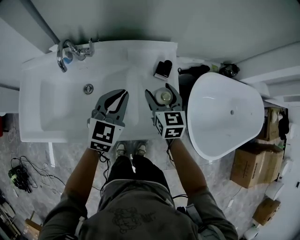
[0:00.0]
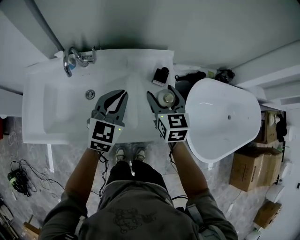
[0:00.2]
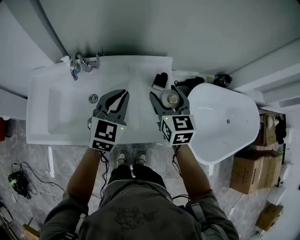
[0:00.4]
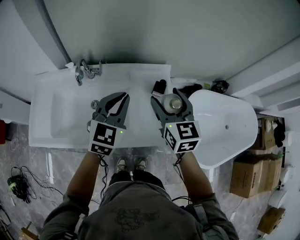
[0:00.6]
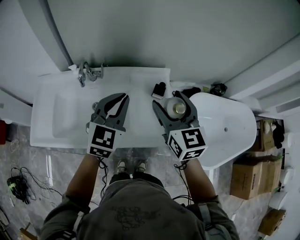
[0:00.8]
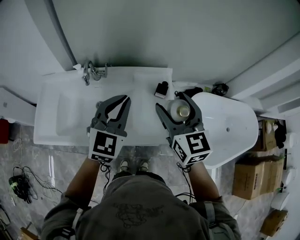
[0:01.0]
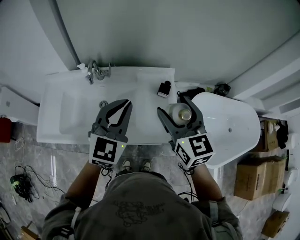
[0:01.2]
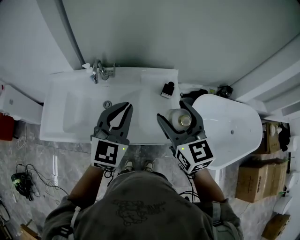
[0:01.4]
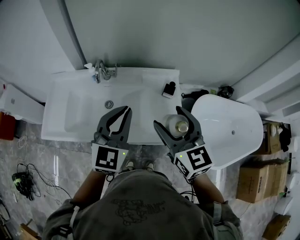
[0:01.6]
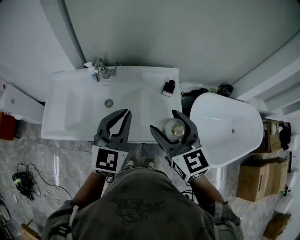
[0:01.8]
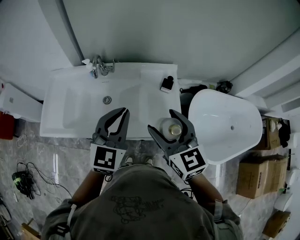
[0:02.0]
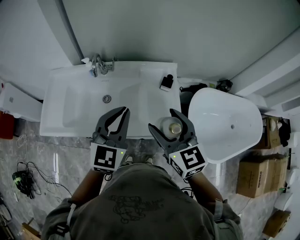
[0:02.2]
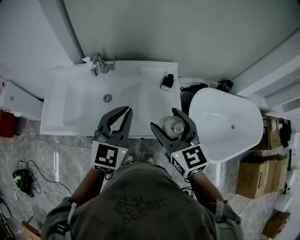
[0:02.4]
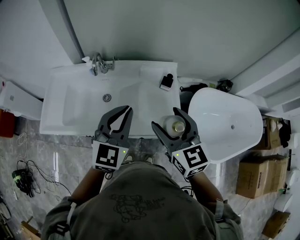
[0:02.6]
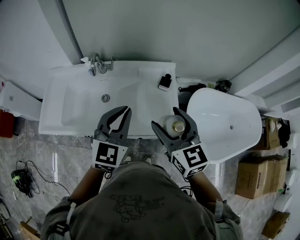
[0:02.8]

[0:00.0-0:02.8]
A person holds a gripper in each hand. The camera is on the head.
0:00.0 to 0:01.4: The two grippers go some 25 cm upward and backward.
0:01.4 to 0:02.8: The right gripper shifts some 5 cm backward; the left gripper changes place by about 5 cm.

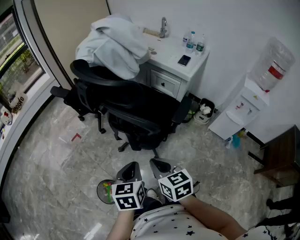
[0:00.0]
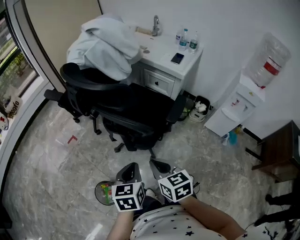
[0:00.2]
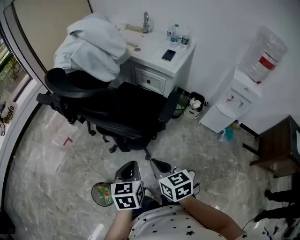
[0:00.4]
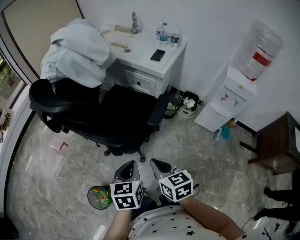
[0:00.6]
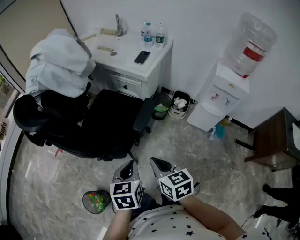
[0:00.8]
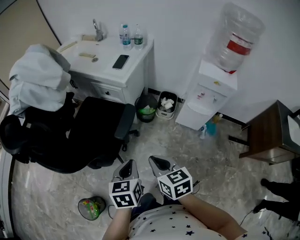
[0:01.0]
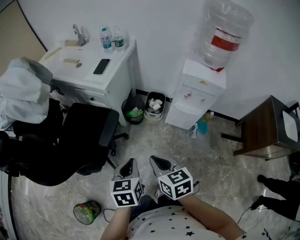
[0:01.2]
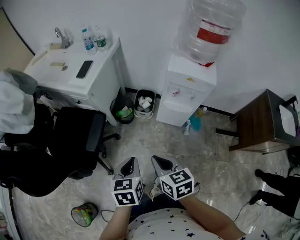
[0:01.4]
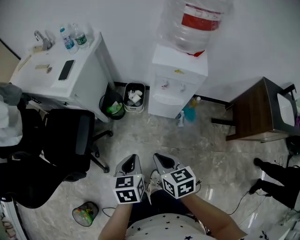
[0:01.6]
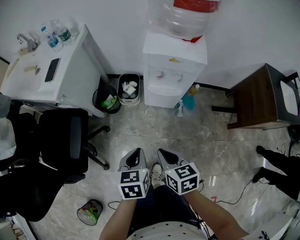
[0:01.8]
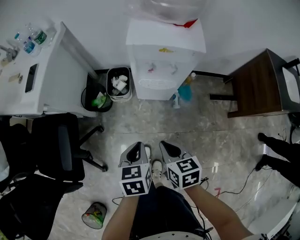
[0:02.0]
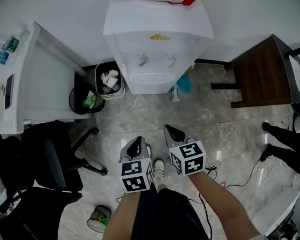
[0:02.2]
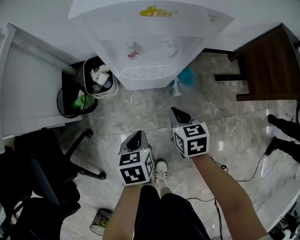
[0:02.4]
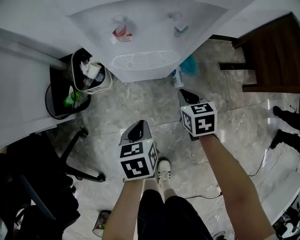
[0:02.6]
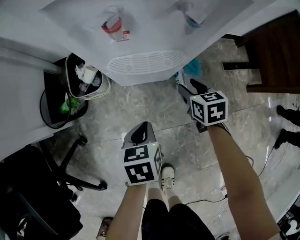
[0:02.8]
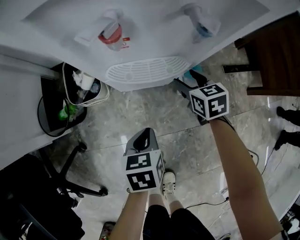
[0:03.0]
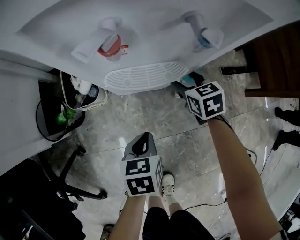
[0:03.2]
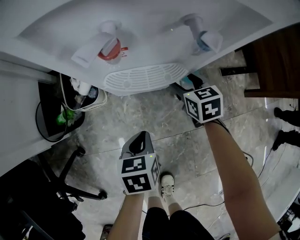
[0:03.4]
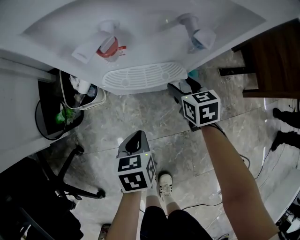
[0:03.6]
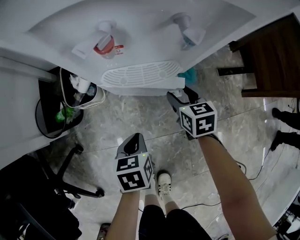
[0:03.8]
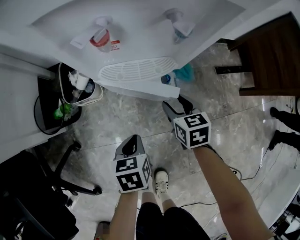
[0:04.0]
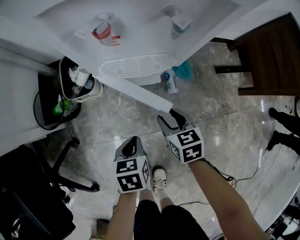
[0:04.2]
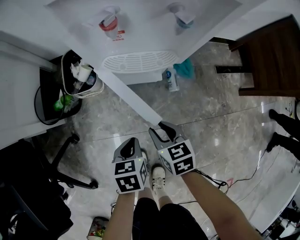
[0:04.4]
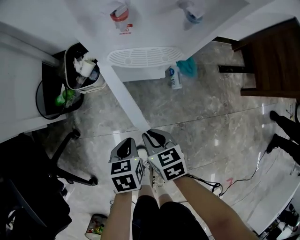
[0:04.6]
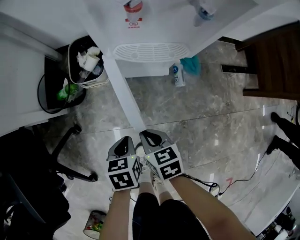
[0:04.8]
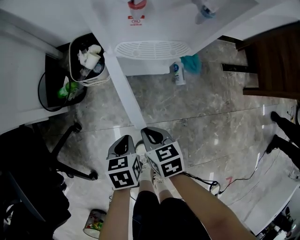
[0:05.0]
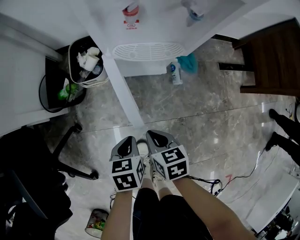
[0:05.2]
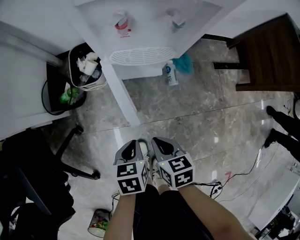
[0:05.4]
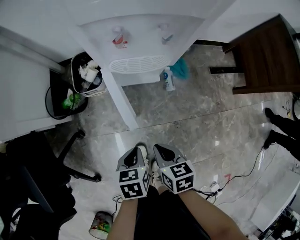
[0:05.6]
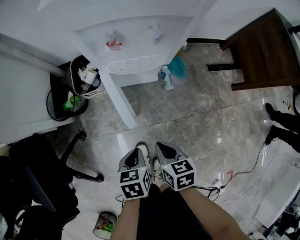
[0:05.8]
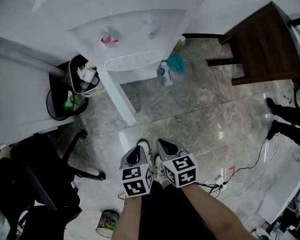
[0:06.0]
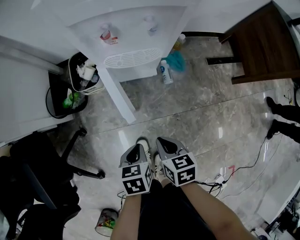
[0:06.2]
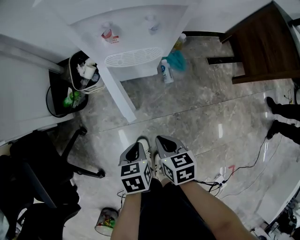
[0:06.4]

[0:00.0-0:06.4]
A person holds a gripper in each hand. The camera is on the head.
0:00.0 to 0:01.6: The pair of grippers is taken approximately 50 cm. The right gripper turns by roughly 30 degrees; the left gripper swivels some 30 degrees.
0:01.6 to 0:03.2: The two grippers go about 40 cm downward. The right gripper changes its angle by some 20 degrees, and opens up. The left gripper swivels roughly 30 degrees.
0:03.2 to 0:04.8: The left gripper shifts some 15 cm backward and to the left. The right gripper is displaced backward and to the left by approximately 30 cm, and closes.
0:04.8 to 0:06.4: The left gripper moves upward, backward and to the right, about 10 cm. The right gripper goes roughly 15 cm upward, to the right and backward.

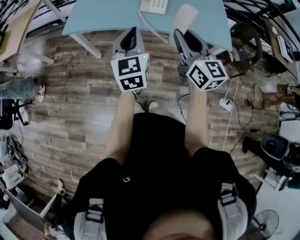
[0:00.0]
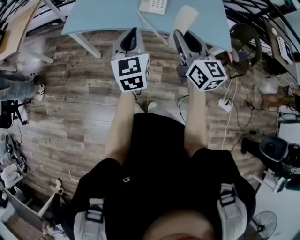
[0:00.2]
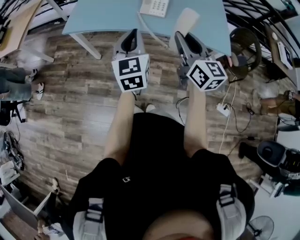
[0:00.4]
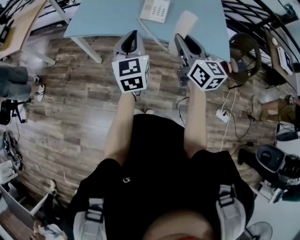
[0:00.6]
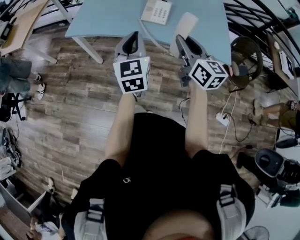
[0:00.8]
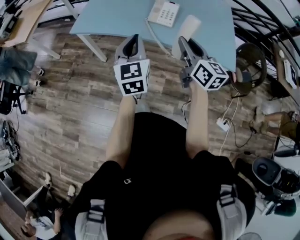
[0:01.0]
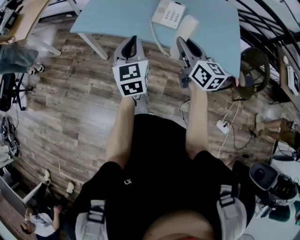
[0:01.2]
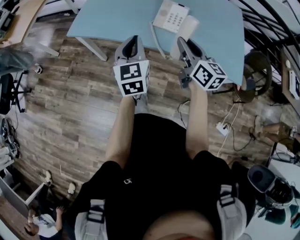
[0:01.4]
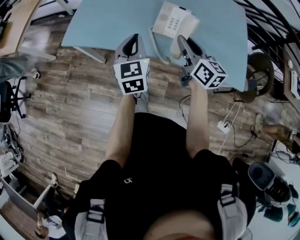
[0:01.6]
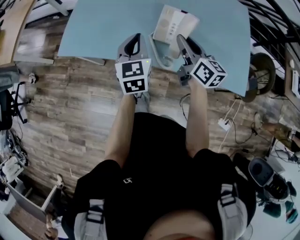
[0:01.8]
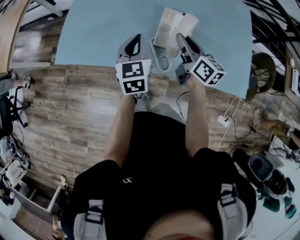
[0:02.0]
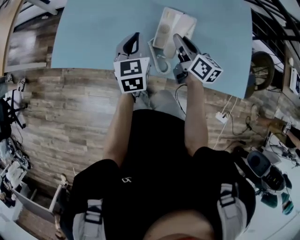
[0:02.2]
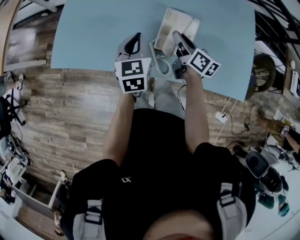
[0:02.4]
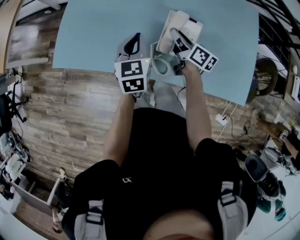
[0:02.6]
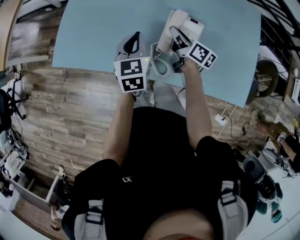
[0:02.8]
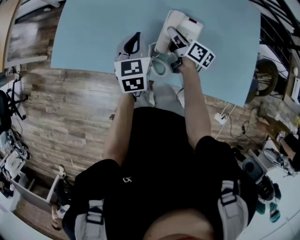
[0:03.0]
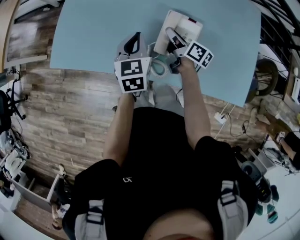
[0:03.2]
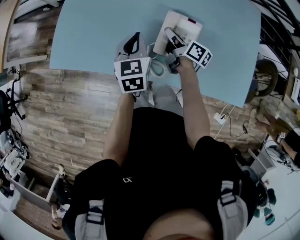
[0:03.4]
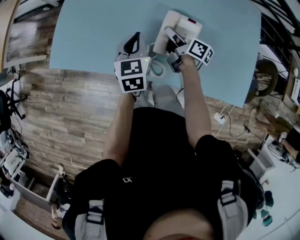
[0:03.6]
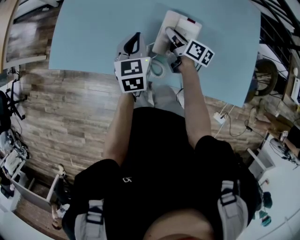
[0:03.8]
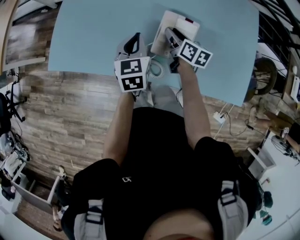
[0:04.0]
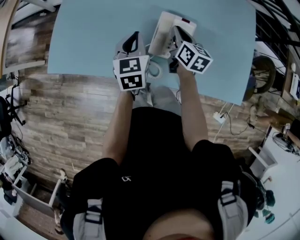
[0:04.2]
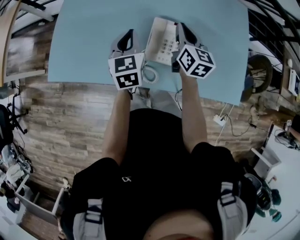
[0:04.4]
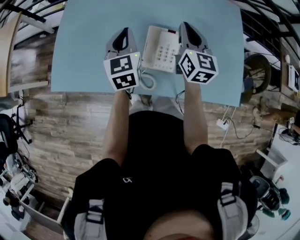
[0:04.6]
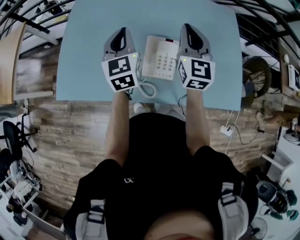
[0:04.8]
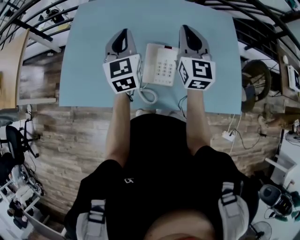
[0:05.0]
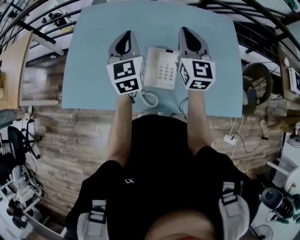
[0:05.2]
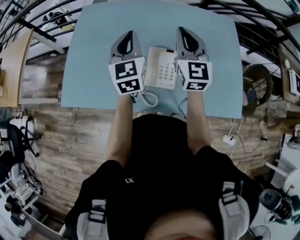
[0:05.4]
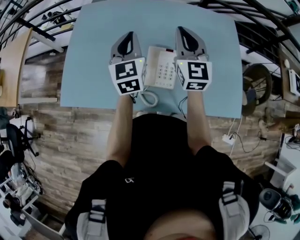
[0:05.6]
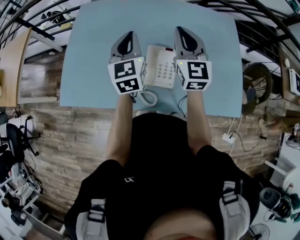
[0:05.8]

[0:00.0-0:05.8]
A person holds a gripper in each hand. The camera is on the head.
0:00.0 to 0:01.4: The grippers both shift forward and downward by some 15 cm.
0:01.4 to 0:02.8: The right gripper heads forward and downward, covering about 35 cm, and swivels roughly 30 degrees, while the left gripper goes about 30 cm forward.
0:02.8 to 0:04.4: The right gripper shifts approximately 10 cm upward and to the right, and rotates roughly 40 degrees. The left gripper moves about 5 cm.
0:04.4 to 0:05.8: The left gripper shifts approximately 15 cm upward and forward. Meanwhile the right gripper goes about 15 cm upward, and swivels about 30 degrees.

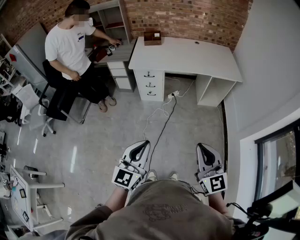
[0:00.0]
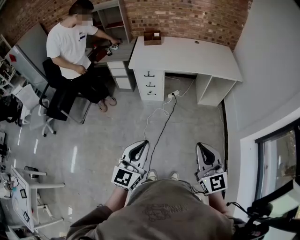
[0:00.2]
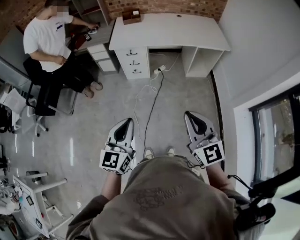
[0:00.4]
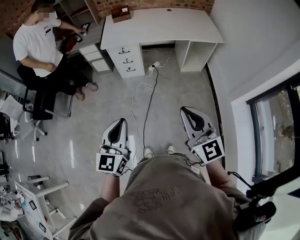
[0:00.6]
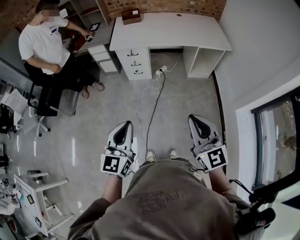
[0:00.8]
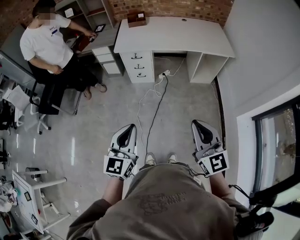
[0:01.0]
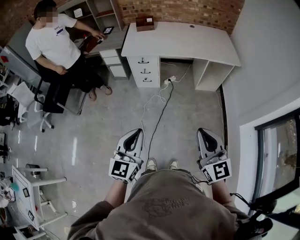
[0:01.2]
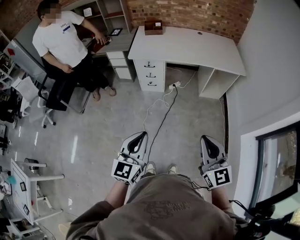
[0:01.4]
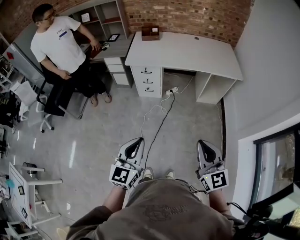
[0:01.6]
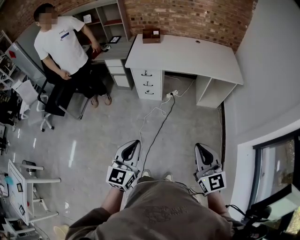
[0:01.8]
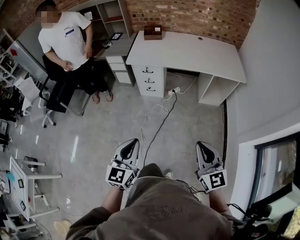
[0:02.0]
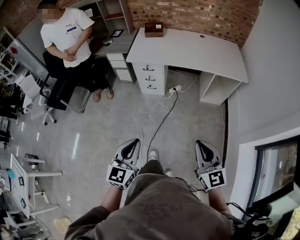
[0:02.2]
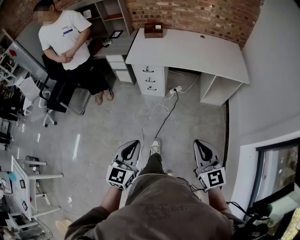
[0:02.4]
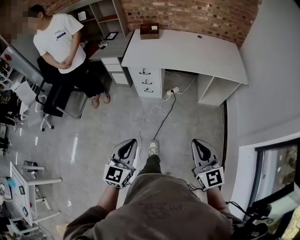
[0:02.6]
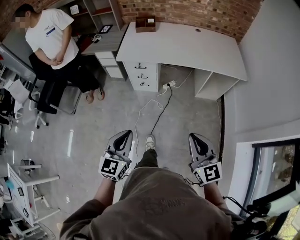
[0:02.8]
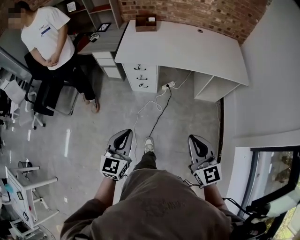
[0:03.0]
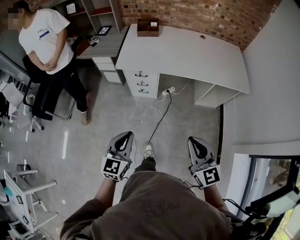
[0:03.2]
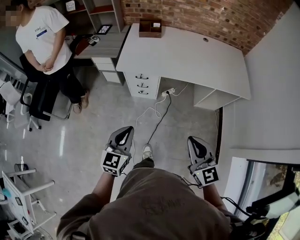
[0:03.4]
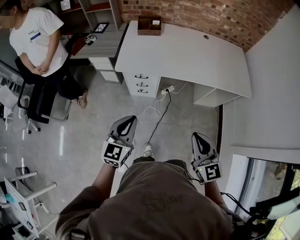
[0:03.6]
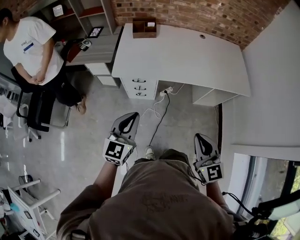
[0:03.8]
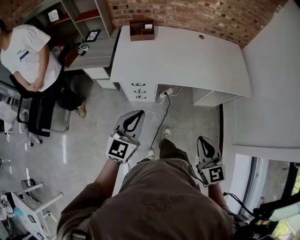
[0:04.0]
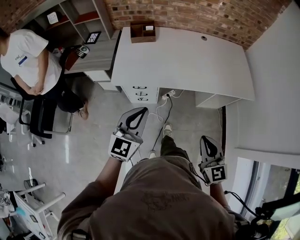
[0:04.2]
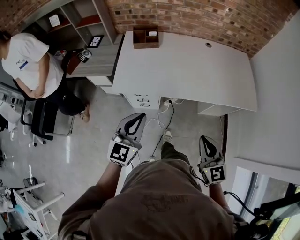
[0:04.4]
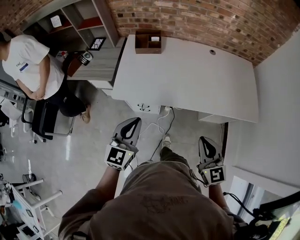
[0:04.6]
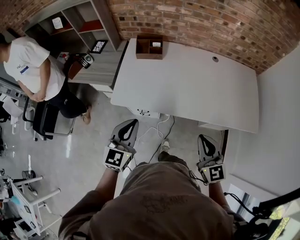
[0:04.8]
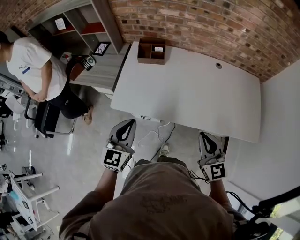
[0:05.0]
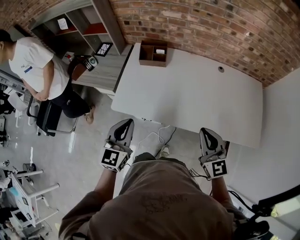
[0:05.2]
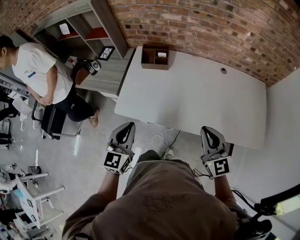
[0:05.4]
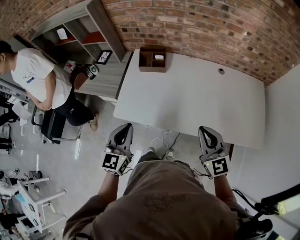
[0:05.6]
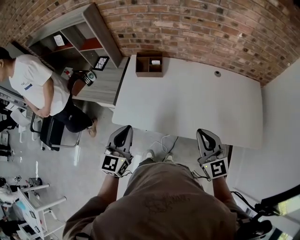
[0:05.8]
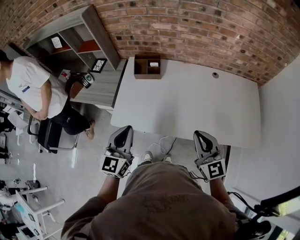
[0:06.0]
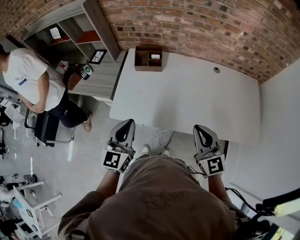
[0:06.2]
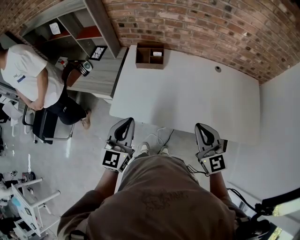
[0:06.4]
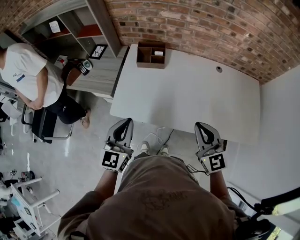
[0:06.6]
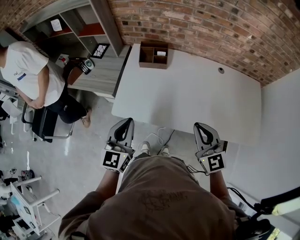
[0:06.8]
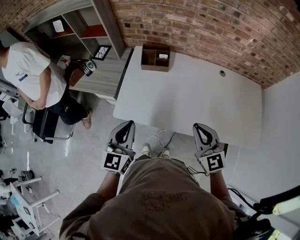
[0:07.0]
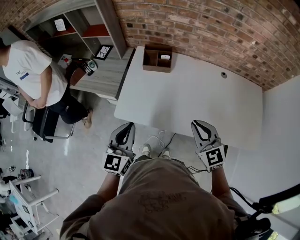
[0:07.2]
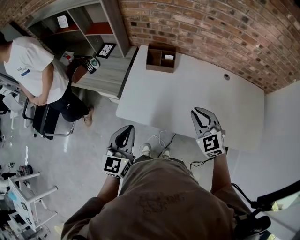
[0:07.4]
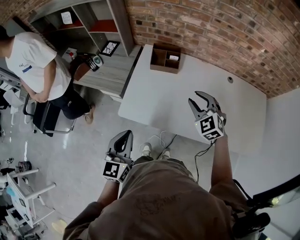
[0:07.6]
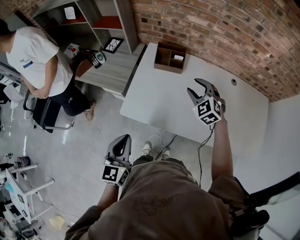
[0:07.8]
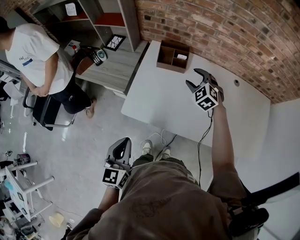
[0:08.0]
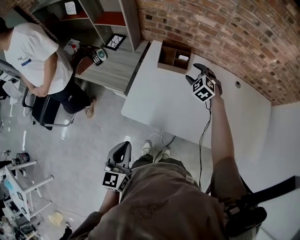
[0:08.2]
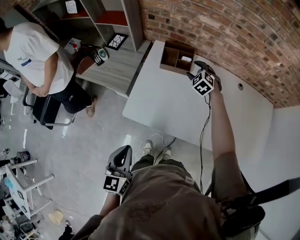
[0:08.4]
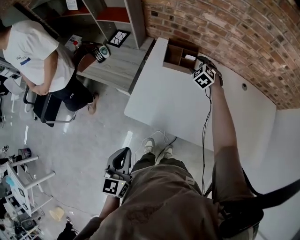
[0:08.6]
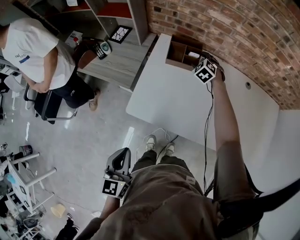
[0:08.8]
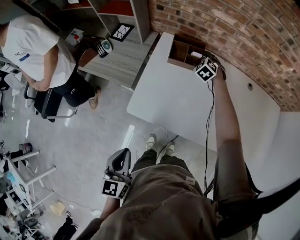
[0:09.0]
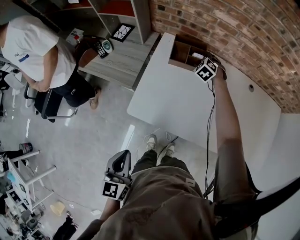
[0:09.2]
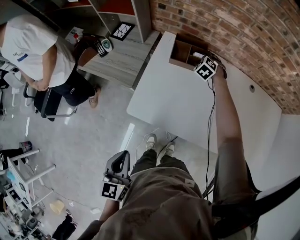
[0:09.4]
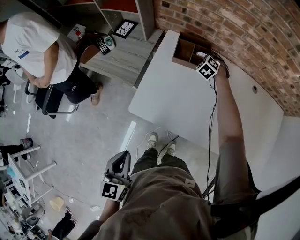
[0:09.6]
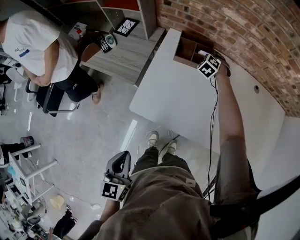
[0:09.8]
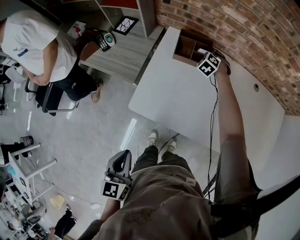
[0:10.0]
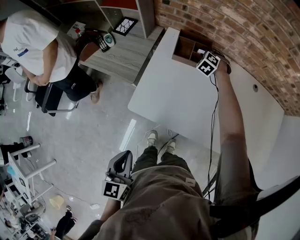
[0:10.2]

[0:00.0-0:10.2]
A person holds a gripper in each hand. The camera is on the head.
0:00.0 to 0:01.4: The grippers make only small movements.
0:01.4 to 0:03.0: Both grippers move forward, about 20 cm.
0:03.0 to 0:04.4: Both grippers travel together forward, about 30 cm.
0:04.4 to 0:05.8: The left gripper is displaced forward by approximately 15 cm; the right gripper shifts about 25 cm forward.
0:05.8 to 0:07.2: The right gripper shifts some 10 cm to the left and forward.
0:07.2 to 0:08.8: The left gripper moves to the left and downward, roughly 10 cm, and changes its angle by roughly 20 degrees. The right gripper travels forward and downward by roughly 50 cm, points its fingers about 30 degrees further downward, and opens.
0:08.8 to 0:10.2: The right gripper moves approximately 5 cm, and closes its fingers.
